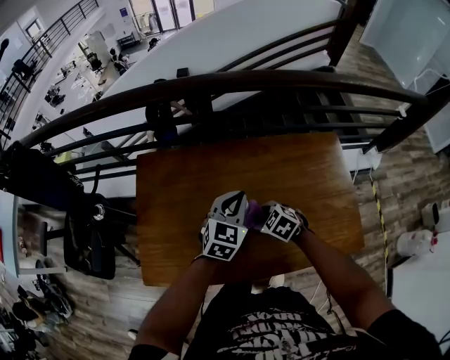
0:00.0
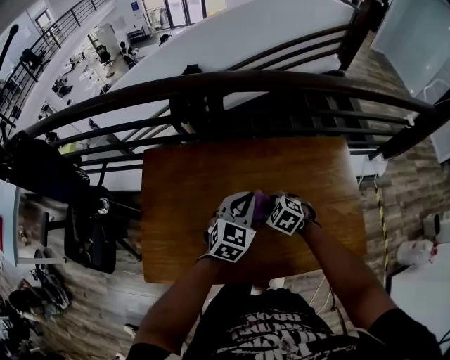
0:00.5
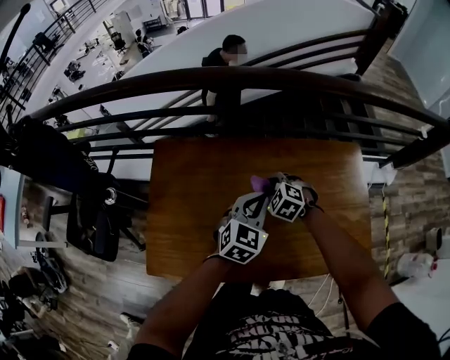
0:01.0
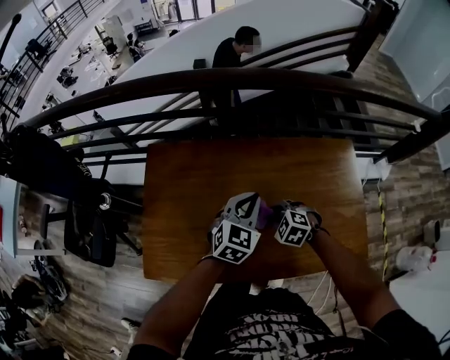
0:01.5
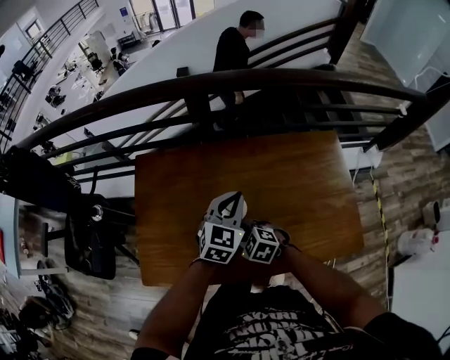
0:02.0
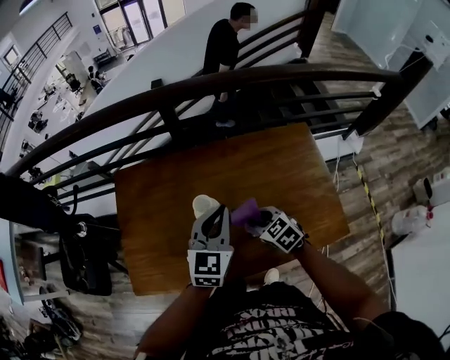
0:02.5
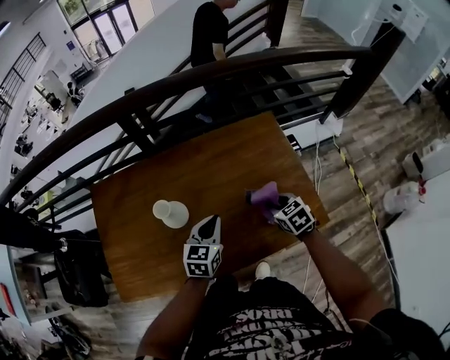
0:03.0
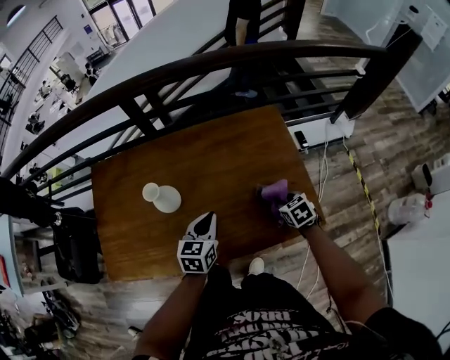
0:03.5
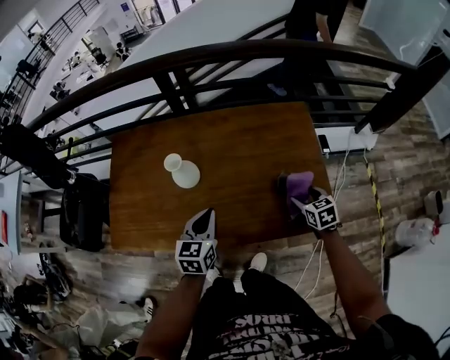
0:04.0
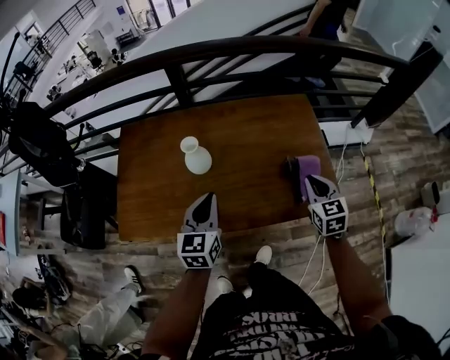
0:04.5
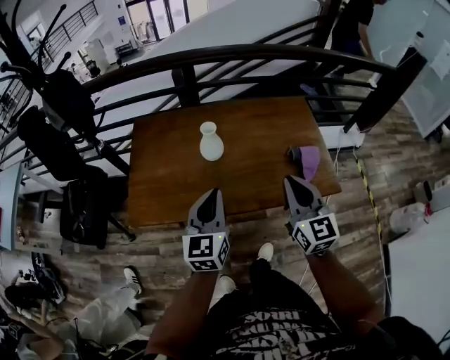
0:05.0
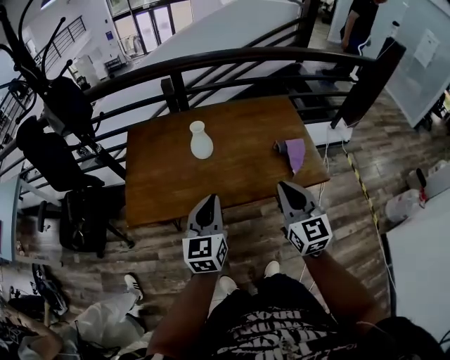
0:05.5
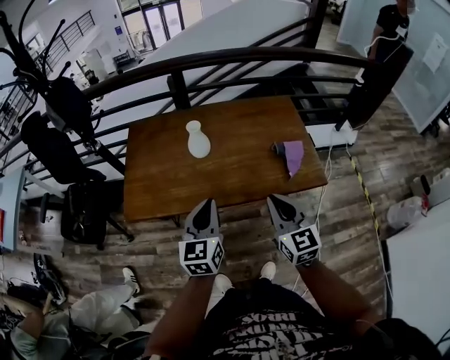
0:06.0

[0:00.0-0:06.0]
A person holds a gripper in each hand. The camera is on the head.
0:00.0 to 0:02.0: The right gripper heads to the left, covering some 10 cm, and reaches about 10 cm forward, then returns.
0:02.0 to 0:04.0: The right gripper travels downward and back again, some 5 cm each way, twists about 40 degrees clockwise, seen from behind, and opens, while the left gripper changes place by some 20 cm, and changes its angle by roughly 20 degrees.
0:04.0 to 0:06.0: The left gripper moves backward and upward, roughly 25 cm. Meanwhile the right gripper travels backward, upward and to the left by roughly 40 cm, angles its fingers upward, by roughly 40 degrees, and closes.

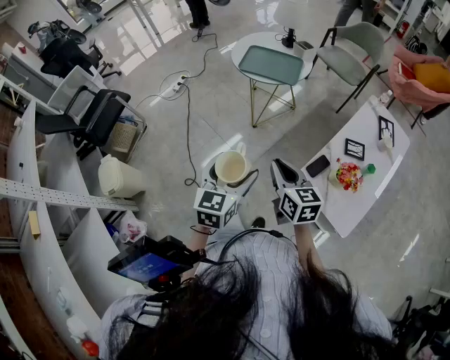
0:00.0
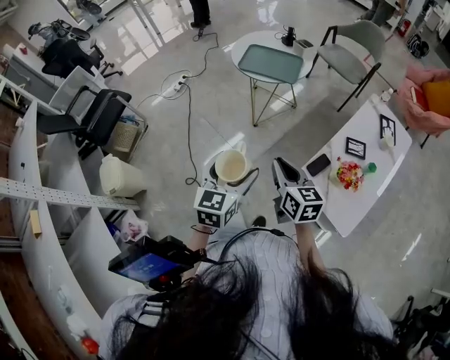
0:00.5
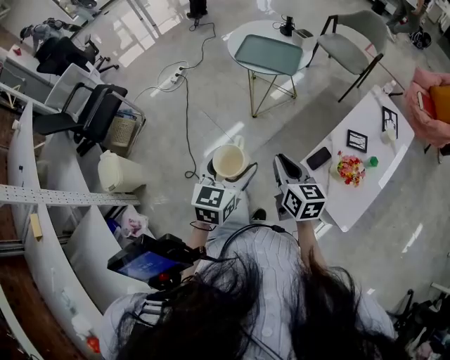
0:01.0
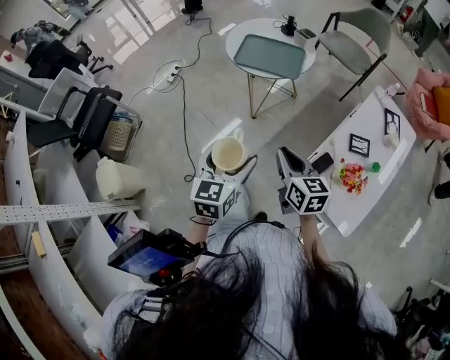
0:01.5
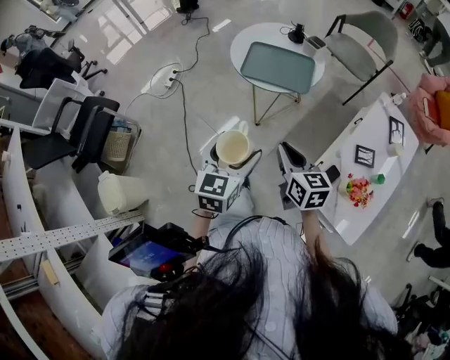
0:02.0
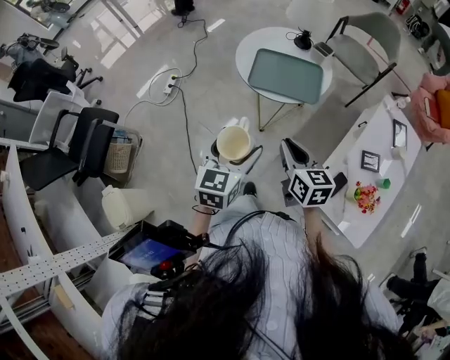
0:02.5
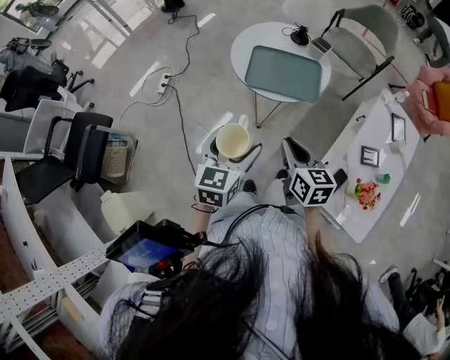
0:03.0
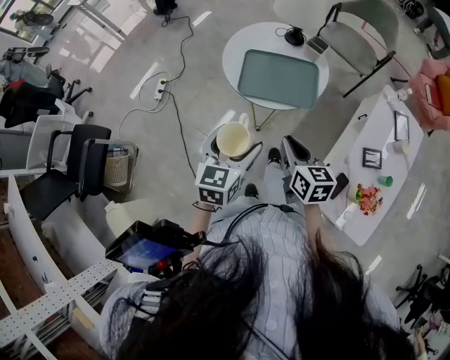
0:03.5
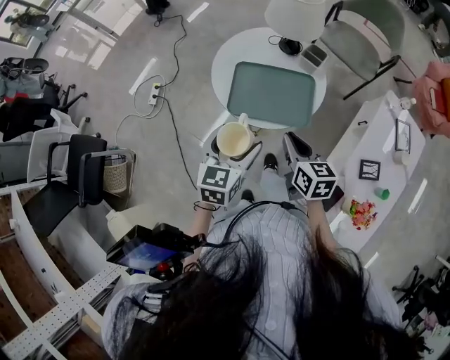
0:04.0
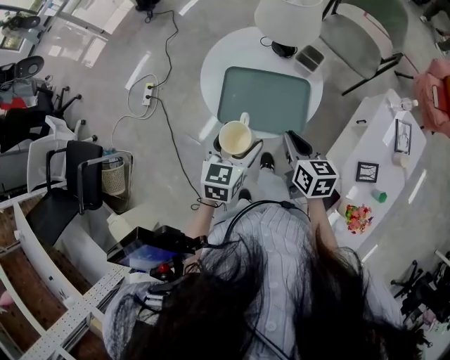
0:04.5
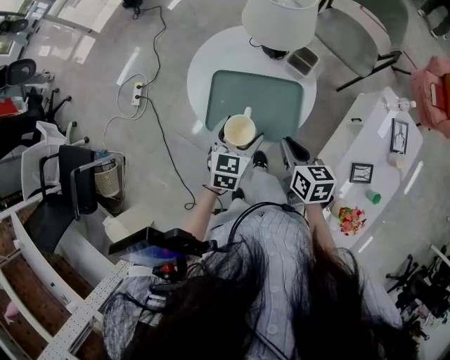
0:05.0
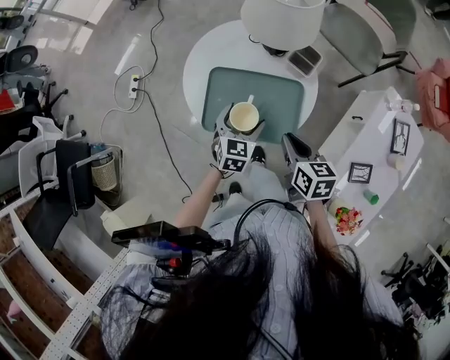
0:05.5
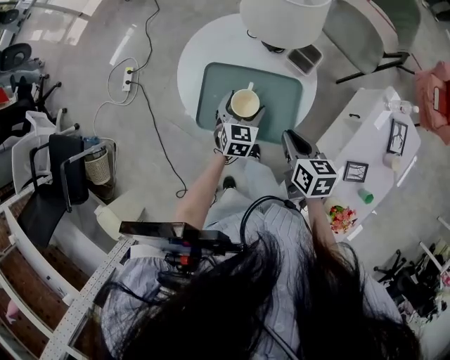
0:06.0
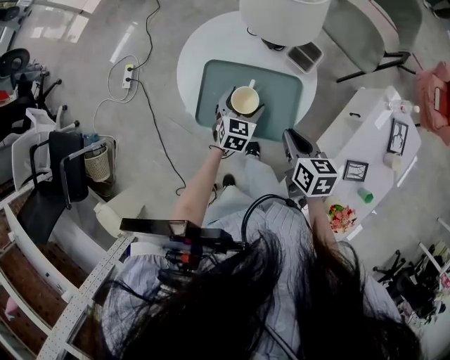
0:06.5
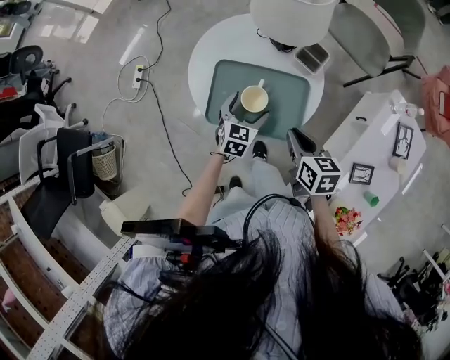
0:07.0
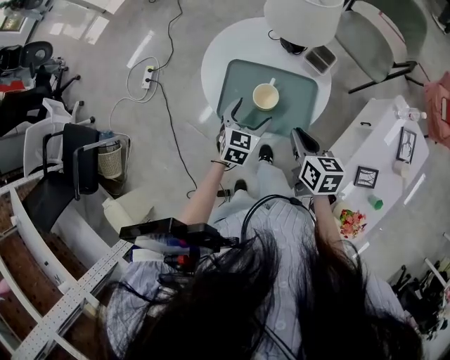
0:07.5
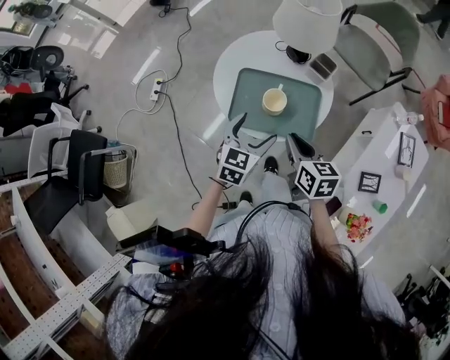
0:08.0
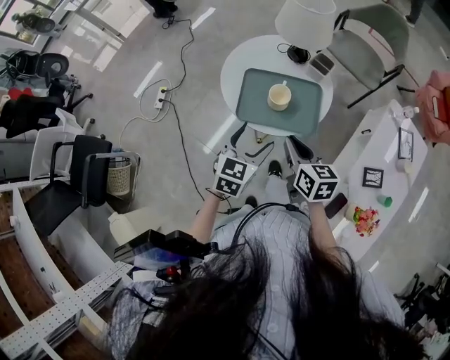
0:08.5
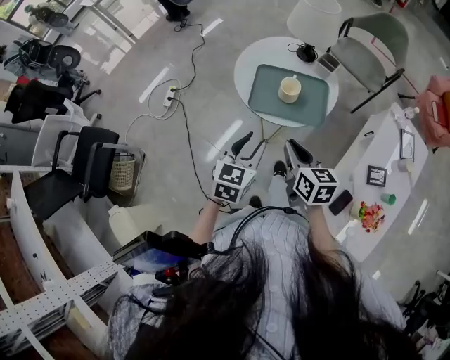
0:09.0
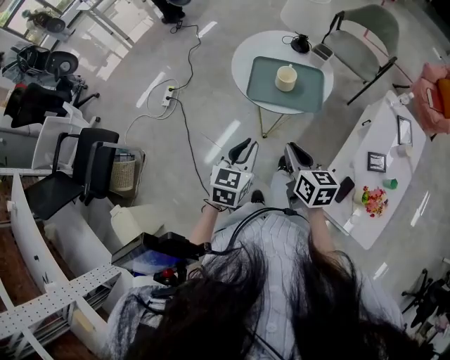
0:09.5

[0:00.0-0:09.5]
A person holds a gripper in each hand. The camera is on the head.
0:00.0 to 0:02.0: The grippers both shift forward by some 20 cm.
0:02.0 to 0:04.0: The grippers both shift forward by some 25 cm.
0:04.0 to 0:05.5: The right gripper goes some 15 cm forward, to the right and downward. Meanwhile the left gripper is displaced downward, forward and to the right by about 25 cm.
0:07.5 to 0:09.5: The right gripper goes about 25 cm backward and to the left. Meanwhile the left gripper is displaced backward, upward and to the left by roughly 35 cm, and closes its fingers.

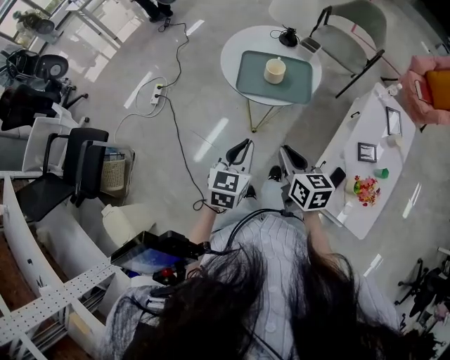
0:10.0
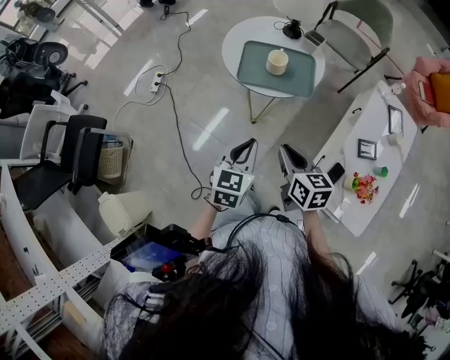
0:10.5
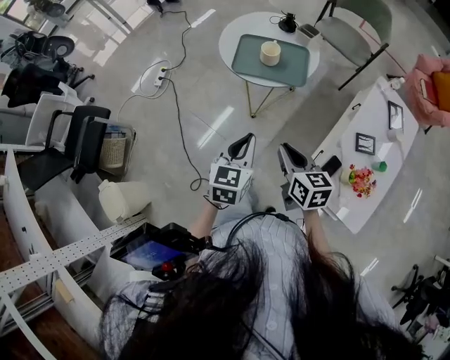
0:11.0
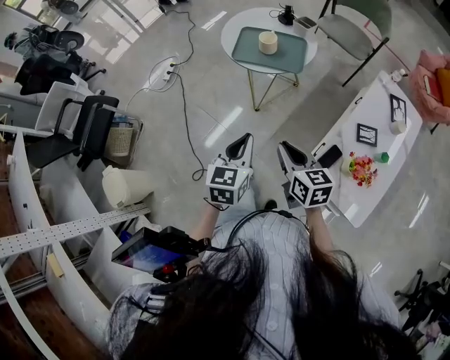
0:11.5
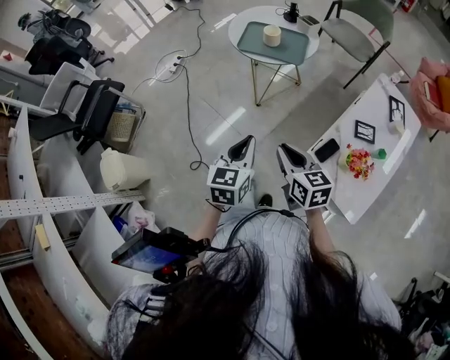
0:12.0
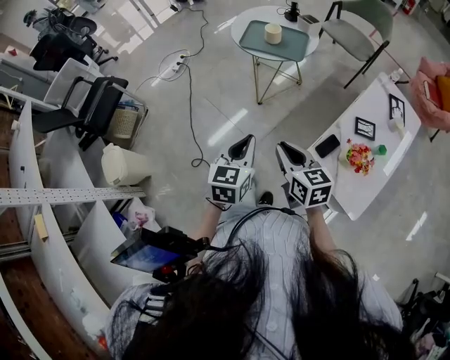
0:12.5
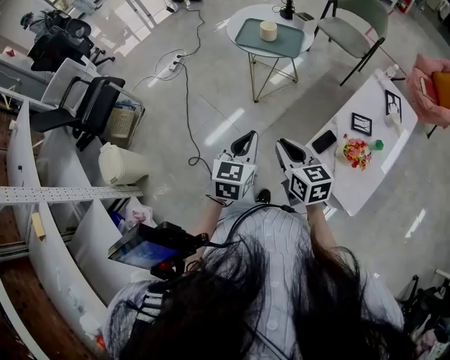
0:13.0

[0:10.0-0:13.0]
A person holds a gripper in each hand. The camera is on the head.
0:10.0 to 0:11.5: The two grippers go some 15 cm backward and to the right.
0:11.5 to 0:13.0: The grippers both shift backward by roughly 15 cm.

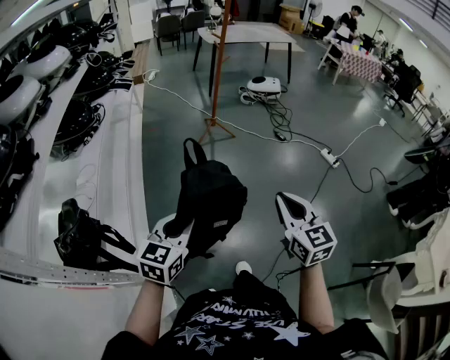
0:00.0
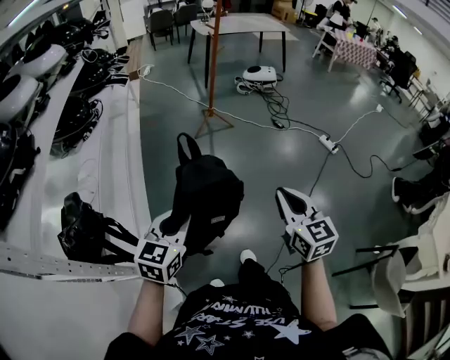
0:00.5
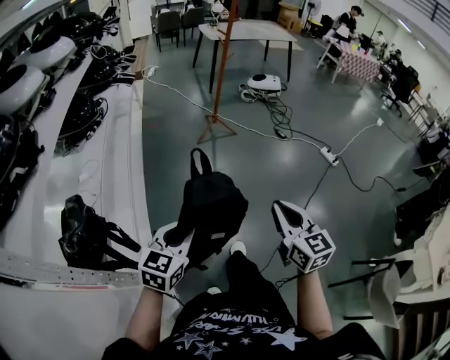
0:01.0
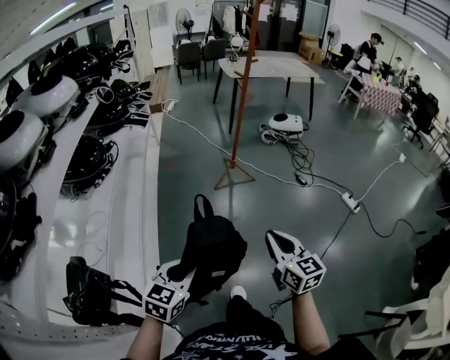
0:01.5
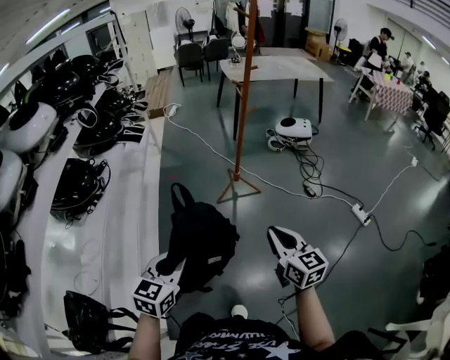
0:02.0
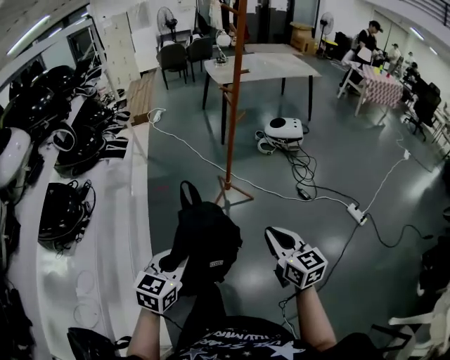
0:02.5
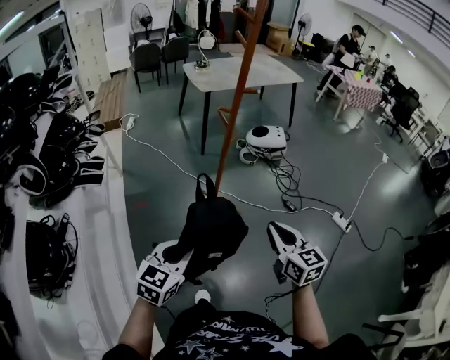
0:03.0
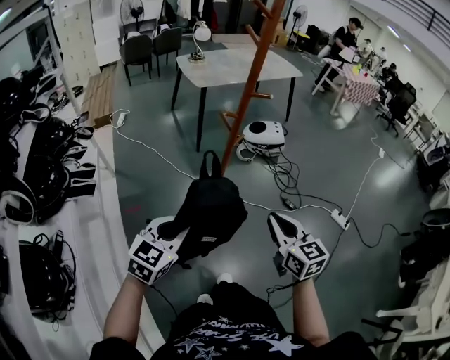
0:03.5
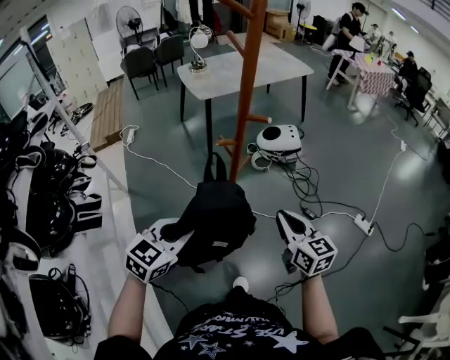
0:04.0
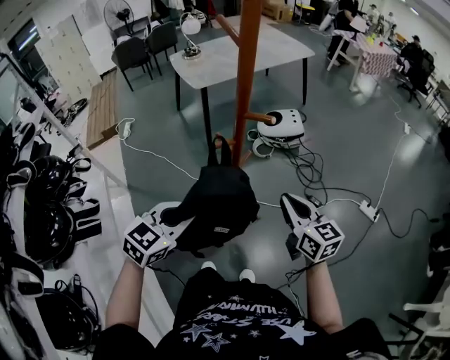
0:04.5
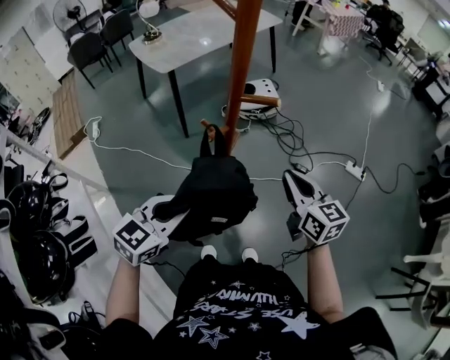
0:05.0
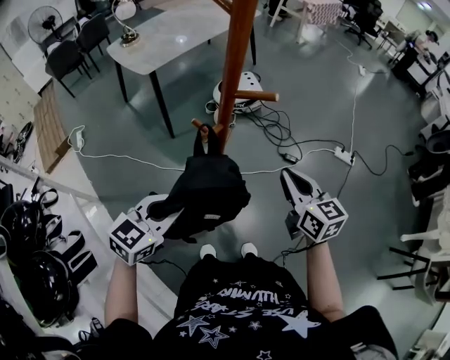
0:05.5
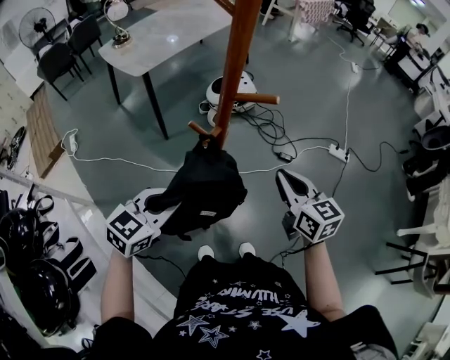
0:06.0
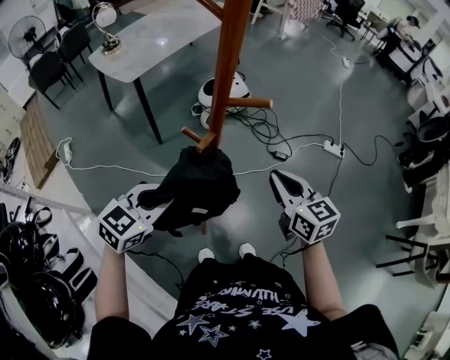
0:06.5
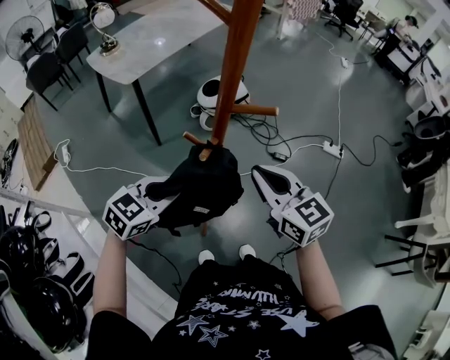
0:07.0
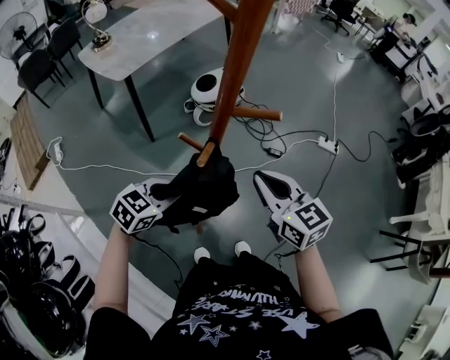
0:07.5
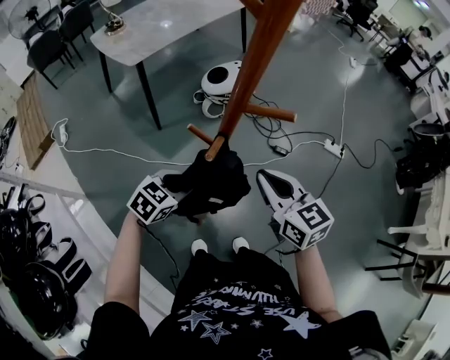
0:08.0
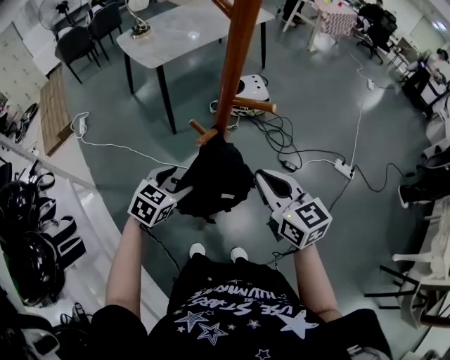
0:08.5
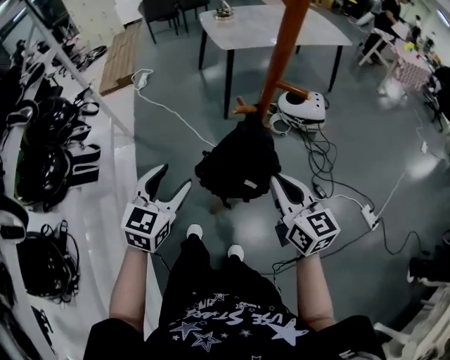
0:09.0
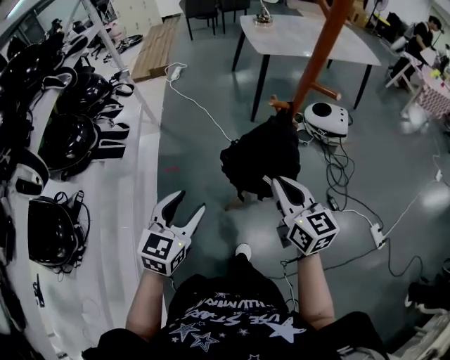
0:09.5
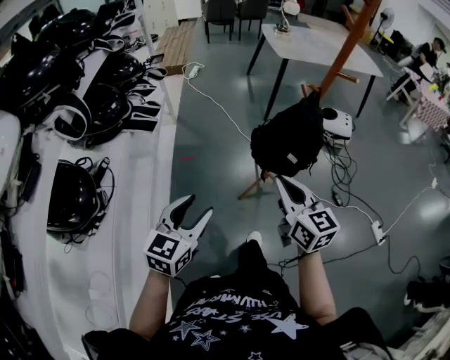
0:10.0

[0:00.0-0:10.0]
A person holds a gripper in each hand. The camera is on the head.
0:00.0 to 0:02.0: The grippers both shift forward by roughly 35 cm.
0:02.0 to 0:04.0: The pair of grippers is taken about 60 cm. The left gripper rotates some 40 degrees.
0:04.0 to 0:06.0: The left gripper ends up some 15 cm from where it was, and changes its angle by approximately 30 degrees. The right gripper moves some 10 cm, and rotates about 20 degrees.
0:06.0 to 0:08.0: The left gripper goes roughly 15 cm downward and forward; the right gripper travels to the left by about 5 cm.
0:08.0 to 0:10.0: The right gripper changes place by roughly 30 cm, and turns by approximately 40 degrees. Meanwhile the left gripper moves approximately 50 cm, changes its angle by some 70 degrees, and opens.
